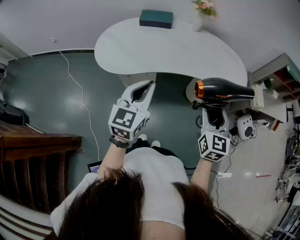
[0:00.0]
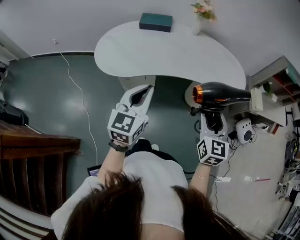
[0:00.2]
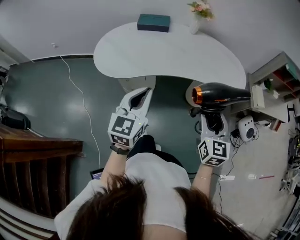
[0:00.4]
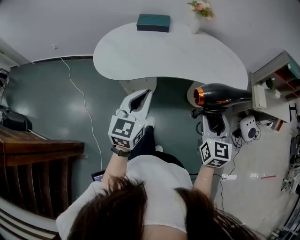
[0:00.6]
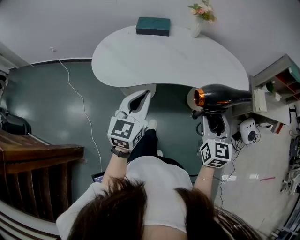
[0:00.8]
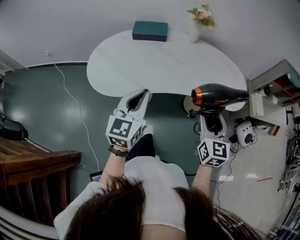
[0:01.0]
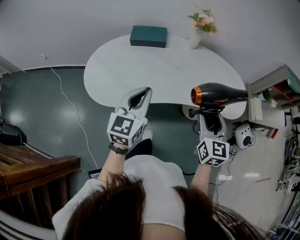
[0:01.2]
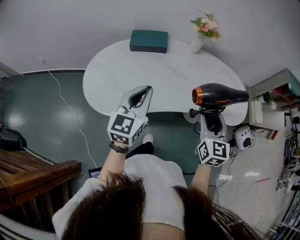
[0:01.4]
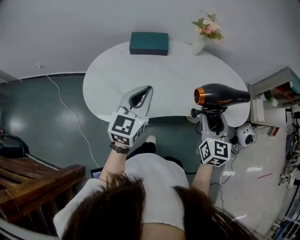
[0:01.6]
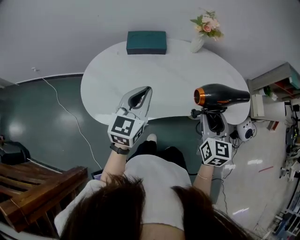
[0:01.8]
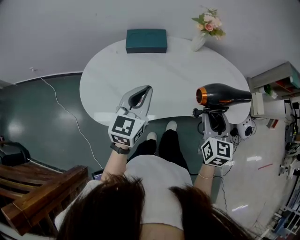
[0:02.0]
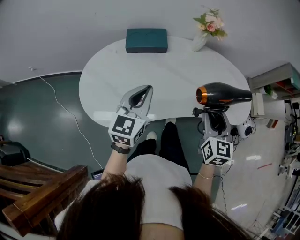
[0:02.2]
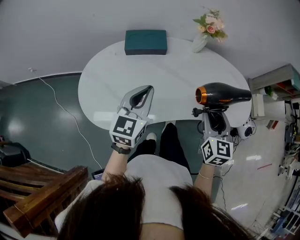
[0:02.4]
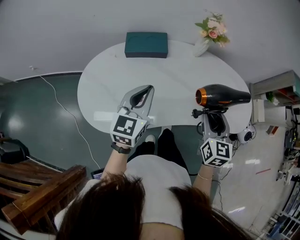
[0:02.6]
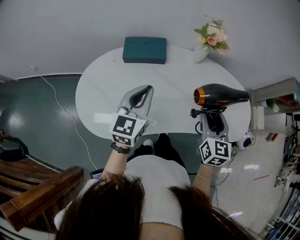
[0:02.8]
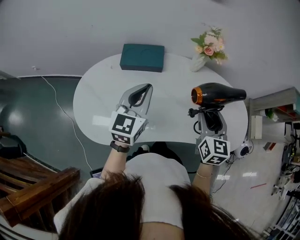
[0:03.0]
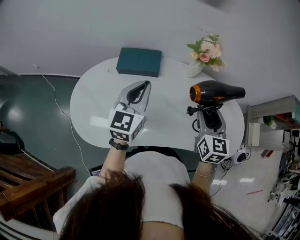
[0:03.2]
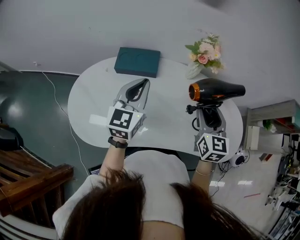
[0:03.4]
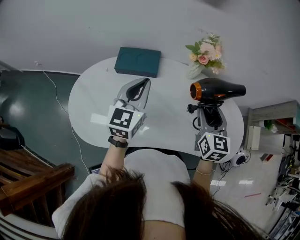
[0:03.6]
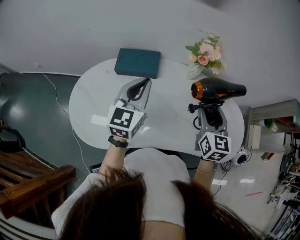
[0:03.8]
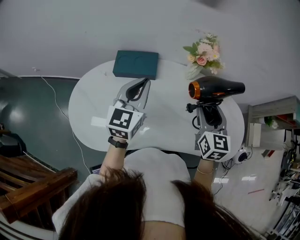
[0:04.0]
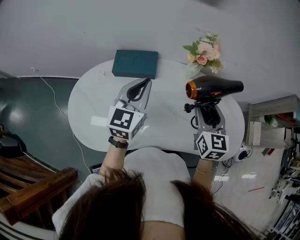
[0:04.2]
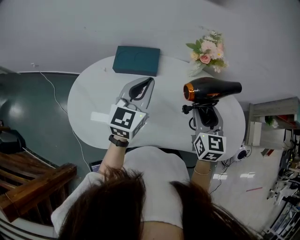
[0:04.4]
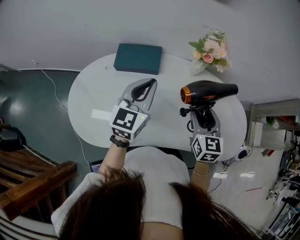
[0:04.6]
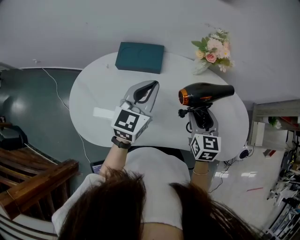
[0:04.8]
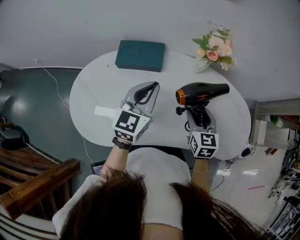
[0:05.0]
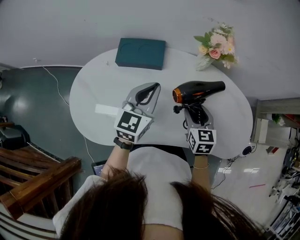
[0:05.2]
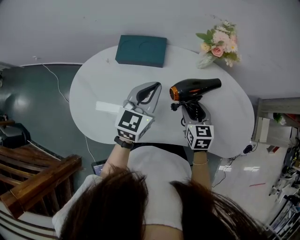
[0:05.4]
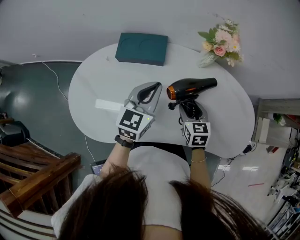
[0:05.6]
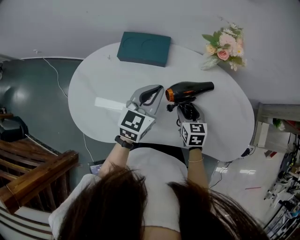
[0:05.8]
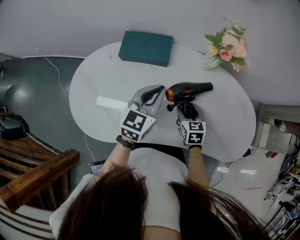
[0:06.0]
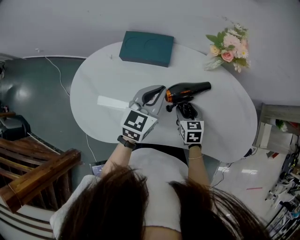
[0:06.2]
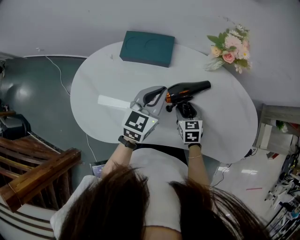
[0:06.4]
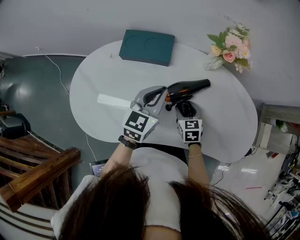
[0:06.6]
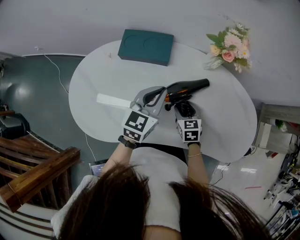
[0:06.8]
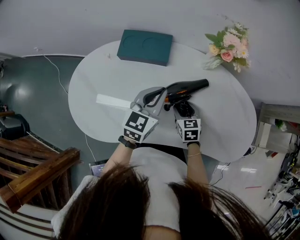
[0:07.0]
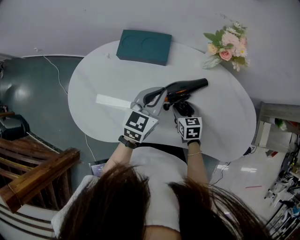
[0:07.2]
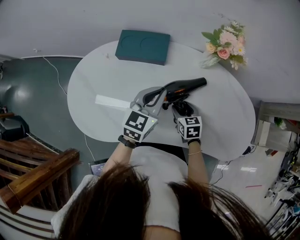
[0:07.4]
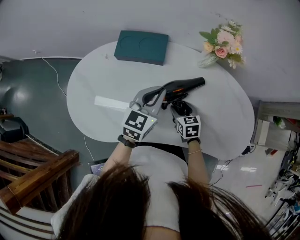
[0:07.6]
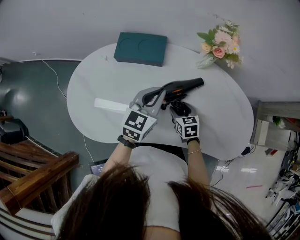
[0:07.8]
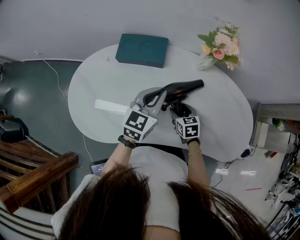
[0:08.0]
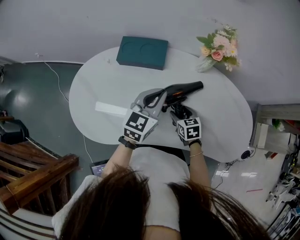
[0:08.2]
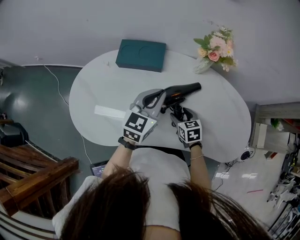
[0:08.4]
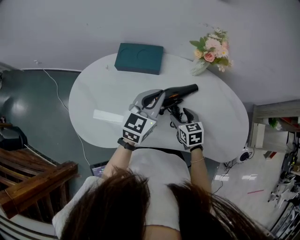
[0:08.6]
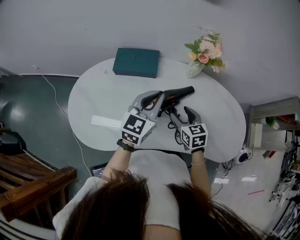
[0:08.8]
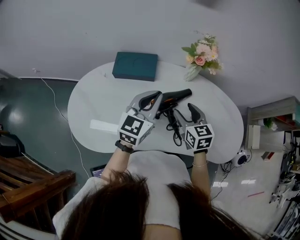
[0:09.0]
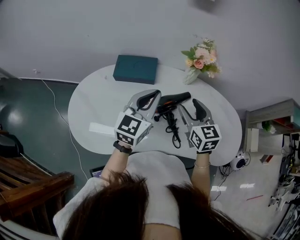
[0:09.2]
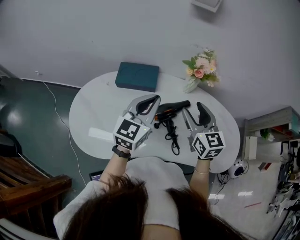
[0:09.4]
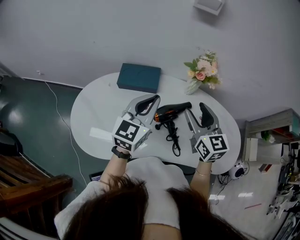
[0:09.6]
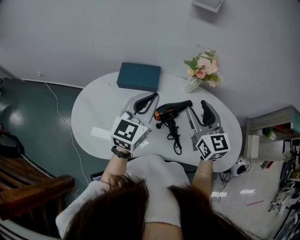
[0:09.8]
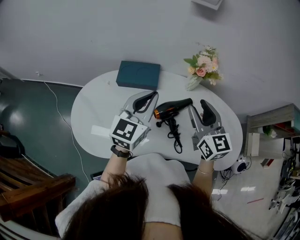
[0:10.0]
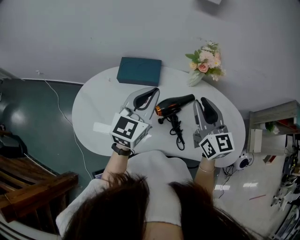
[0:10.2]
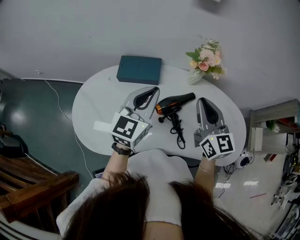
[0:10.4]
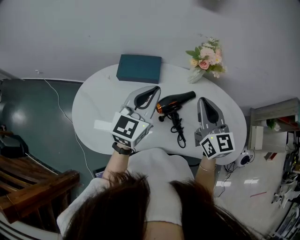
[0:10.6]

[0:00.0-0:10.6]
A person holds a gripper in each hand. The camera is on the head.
0:00.0 to 0:01.6: The two grippers go roughly 25 cm forward.
0:01.6 to 0:03.0: Both grippers move forward, approximately 15 cm.
0:03.0 to 0:04.6: Both grippers move forward, roughly 5 cm.
0:04.6 to 0:06.0: The right gripper is displaced downward by approximately 20 cm, and turns by approximately 20 degrees, while the left gripper goes approximately 10 cm downward.
0:06.0 to 0:07.6: The grippers stay close to where they were, moving slightly.
0:07.6 to 0:09.0: The right gripper moves upward, roughly 15 cm, and turns by roughly 20 degrees. Meanwhile the left gripper moves upward, approximately 10 cm.
0:09.0 to 0:10.6: The right gripper heads upward, covering roughly 15 cm, swivels some 20 degrees, and closes; the left gripper is displaced upward by approximately 5 cm.

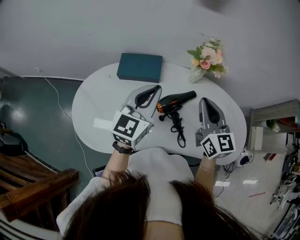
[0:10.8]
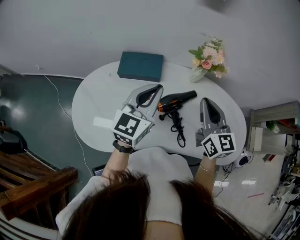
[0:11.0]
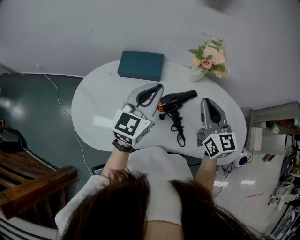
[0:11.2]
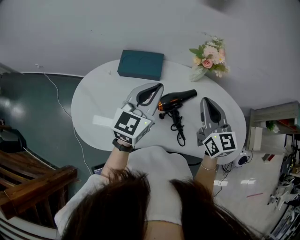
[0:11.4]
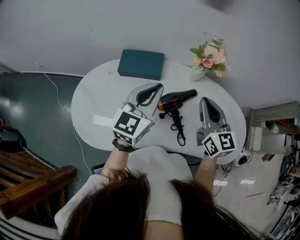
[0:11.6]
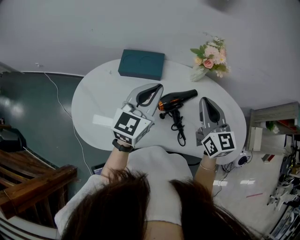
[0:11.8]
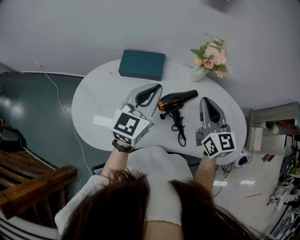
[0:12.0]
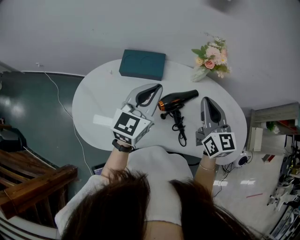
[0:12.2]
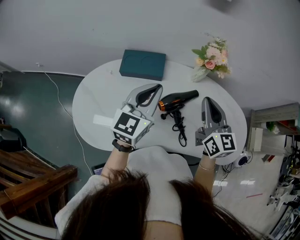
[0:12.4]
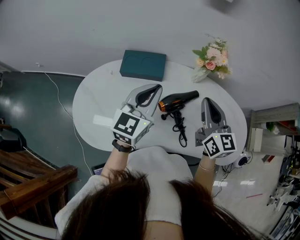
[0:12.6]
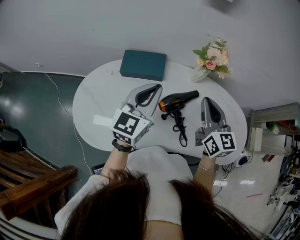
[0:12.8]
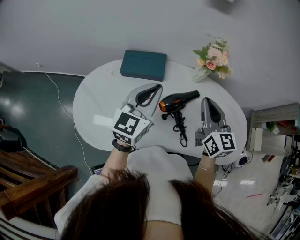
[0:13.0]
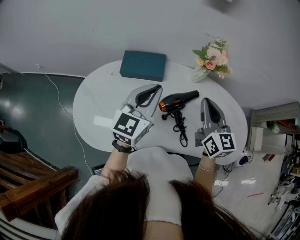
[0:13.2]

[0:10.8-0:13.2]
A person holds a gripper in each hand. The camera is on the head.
0:10.8 to 0:12.0: The two grippers keep their place.
0:12.0 to 0:13.2: The two grippers keep their place.

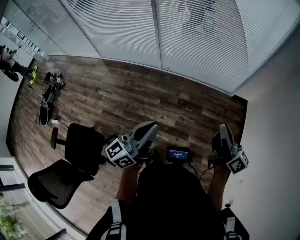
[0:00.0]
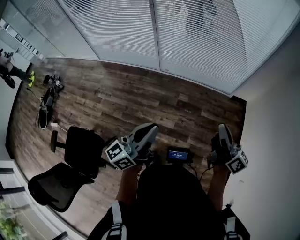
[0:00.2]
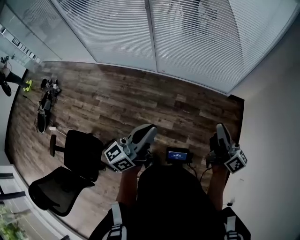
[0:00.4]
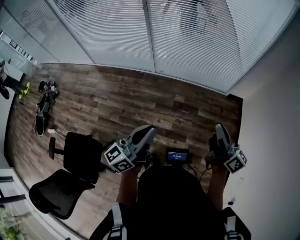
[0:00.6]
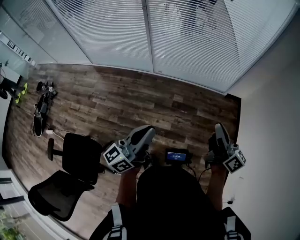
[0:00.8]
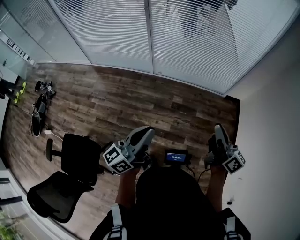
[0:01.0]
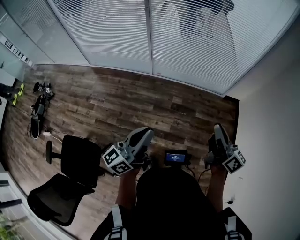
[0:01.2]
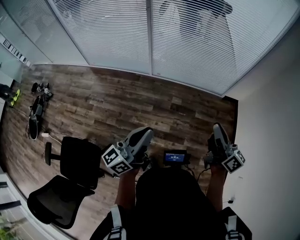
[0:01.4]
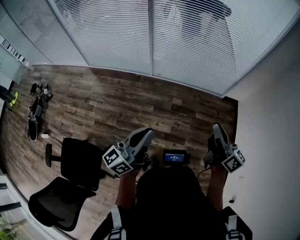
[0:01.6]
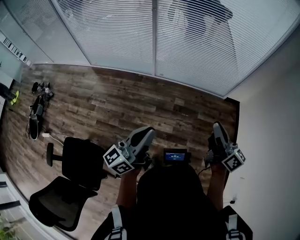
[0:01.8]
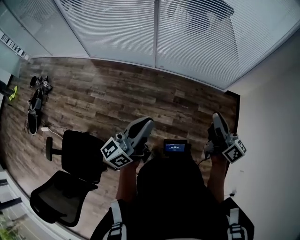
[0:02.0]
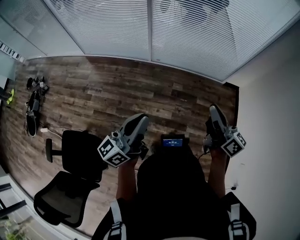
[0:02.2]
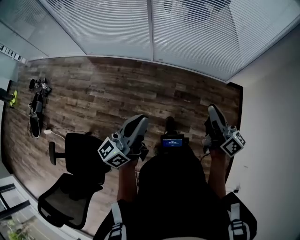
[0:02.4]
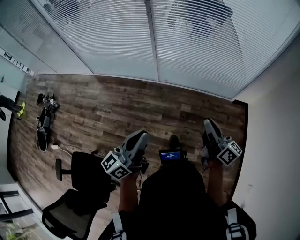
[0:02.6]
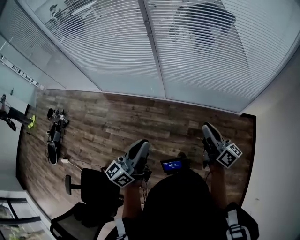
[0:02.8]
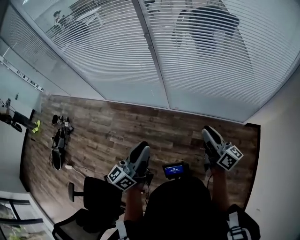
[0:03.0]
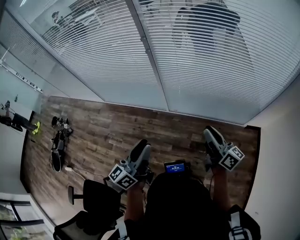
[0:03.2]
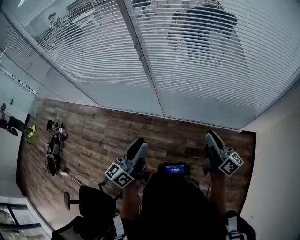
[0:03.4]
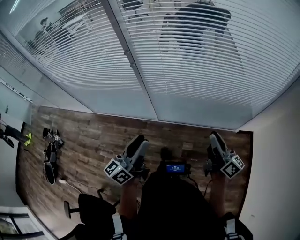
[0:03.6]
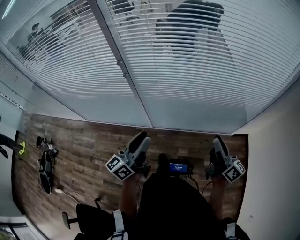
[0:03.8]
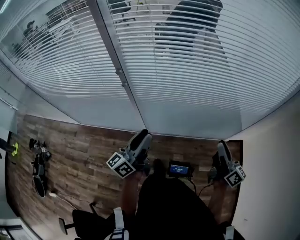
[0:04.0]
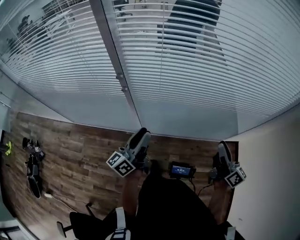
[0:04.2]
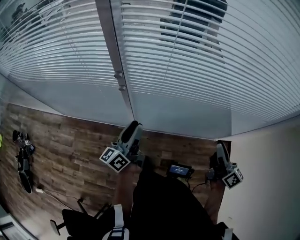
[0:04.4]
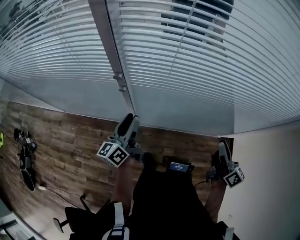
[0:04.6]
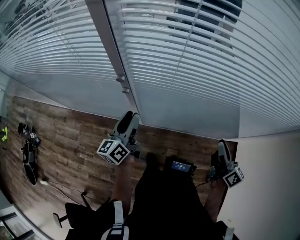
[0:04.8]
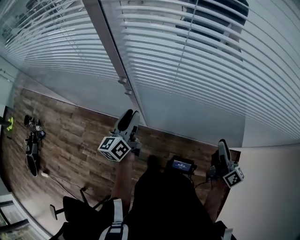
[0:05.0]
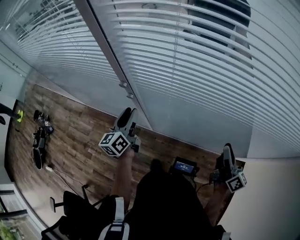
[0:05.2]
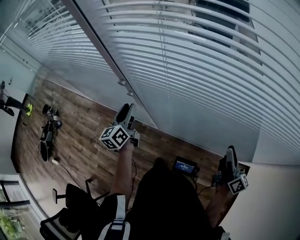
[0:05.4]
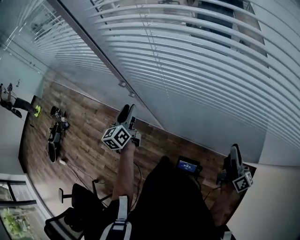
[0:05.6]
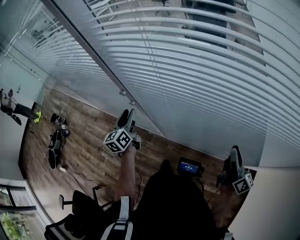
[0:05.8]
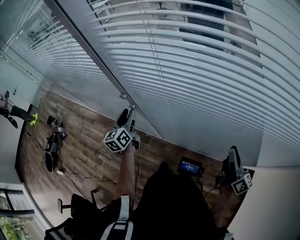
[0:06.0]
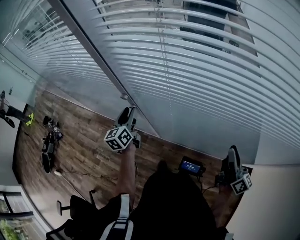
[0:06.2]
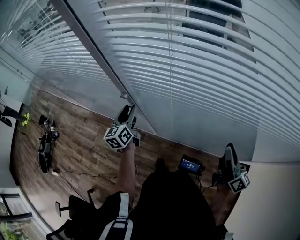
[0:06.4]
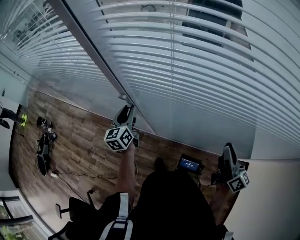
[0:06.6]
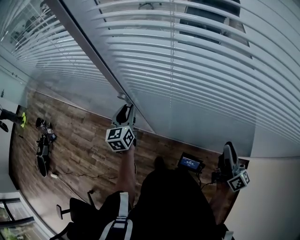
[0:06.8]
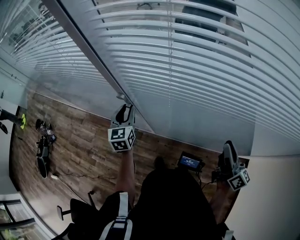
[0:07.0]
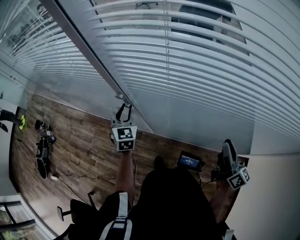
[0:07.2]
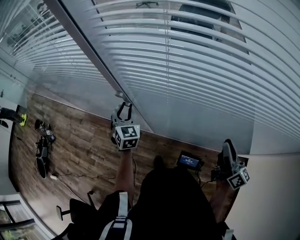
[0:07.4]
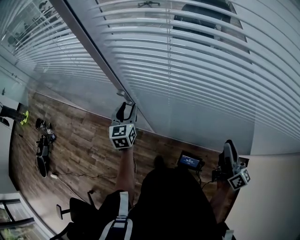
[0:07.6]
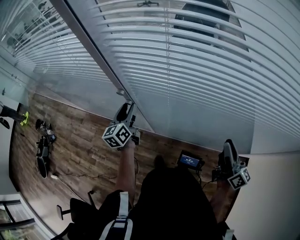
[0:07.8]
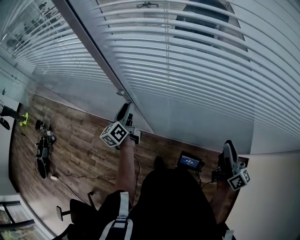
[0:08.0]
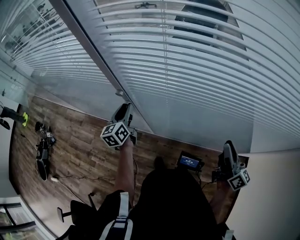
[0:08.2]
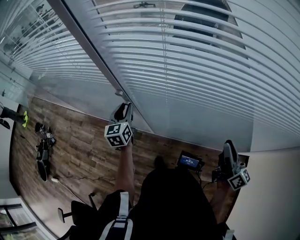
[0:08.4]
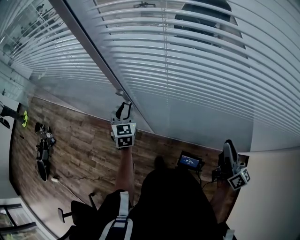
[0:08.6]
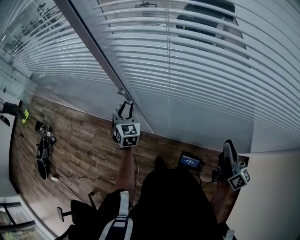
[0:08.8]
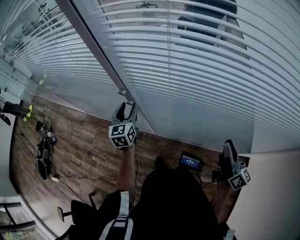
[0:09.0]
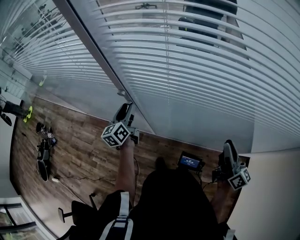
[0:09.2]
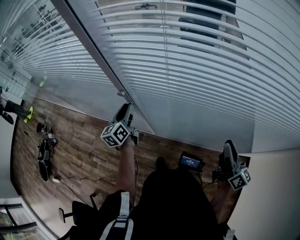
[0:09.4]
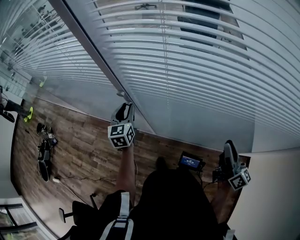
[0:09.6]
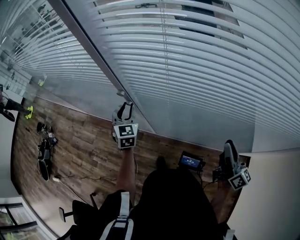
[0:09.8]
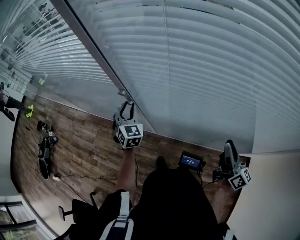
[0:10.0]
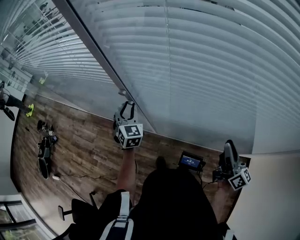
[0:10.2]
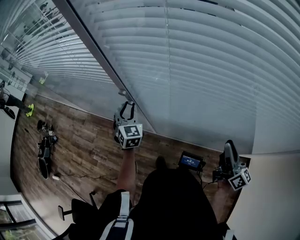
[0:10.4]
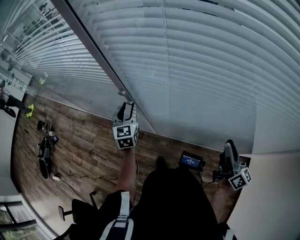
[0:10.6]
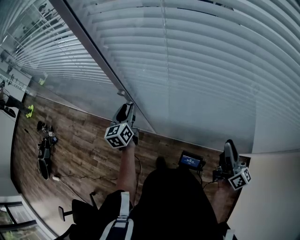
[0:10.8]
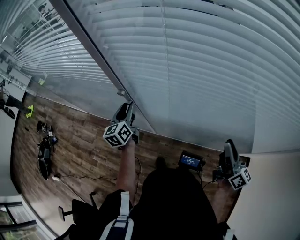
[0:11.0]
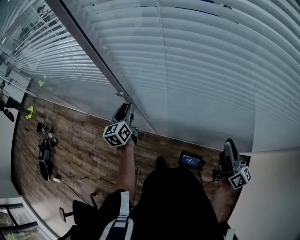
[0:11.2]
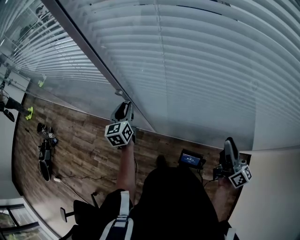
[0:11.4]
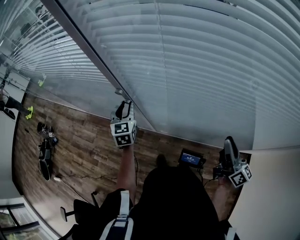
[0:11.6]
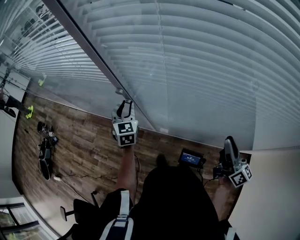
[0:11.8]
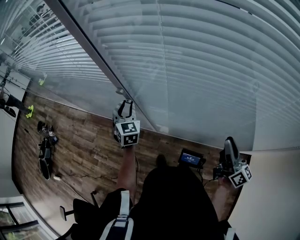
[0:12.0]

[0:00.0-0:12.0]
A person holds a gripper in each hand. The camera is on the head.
0:00.0 to 0:01.6: Both grippers move to the left, roughly 10 cm.
0:01.6 to 0:03.0: The two grippers go approximately 25 cm forward.
0:03.0 to 0:04.4: The right gripper shifts approximately 25 cm forward and to the right, and swivels about 20 degrees, while the left gripper travels forward by approximately 40 cm.
0:04.4 to 0:06.0: The left gripper goes roughly 20 cm forward and to the left, and swivels about 40 degrees; the right gripper shifts some 20 cm forward and to the right.
0:06.0 to 0:07.6: The right gripper is displaced upward by about 5 cm; the left gripper swivels approximately 20 degrees.
0:09.0 to 0:10.4: The left gripper rotates about 30 degrees.
